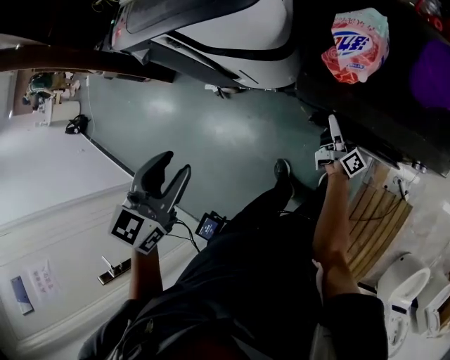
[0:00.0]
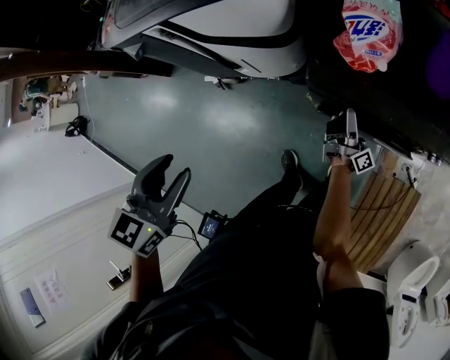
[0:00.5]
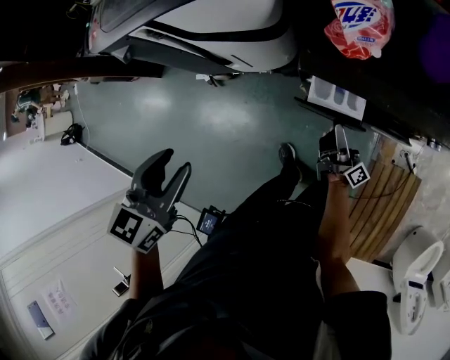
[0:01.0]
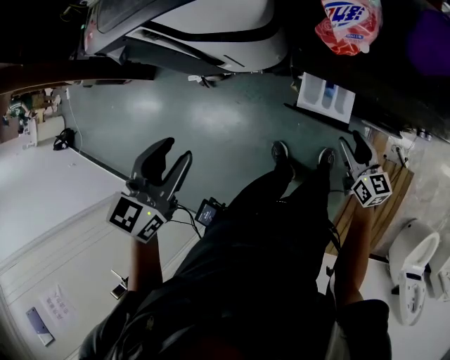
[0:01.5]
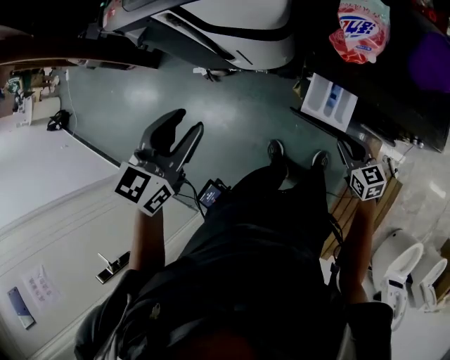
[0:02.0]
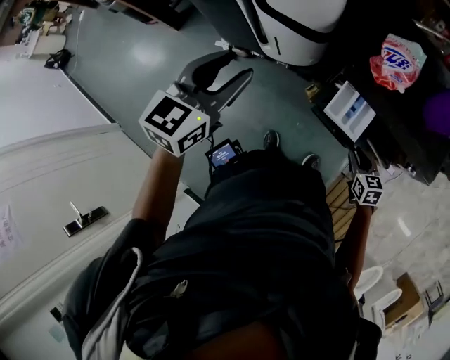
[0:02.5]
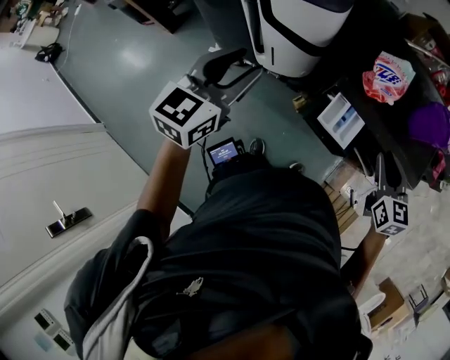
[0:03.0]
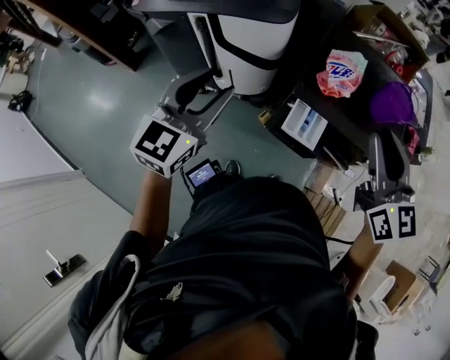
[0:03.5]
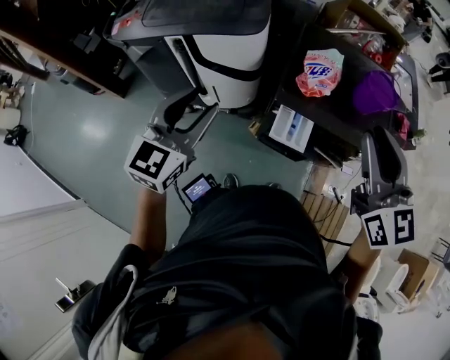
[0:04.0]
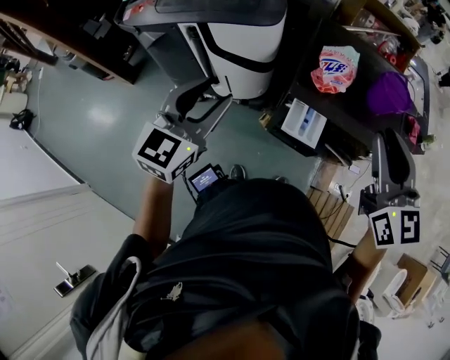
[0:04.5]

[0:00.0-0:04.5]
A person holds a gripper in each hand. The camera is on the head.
0:00.0 to 0:02.0: The right gripper is displaced backward by roughly 15 cm, angles its fingers downward, by about 40 degrees, and closes its fingers.
0:02.0 to 0:04.5: The right gripper goes about 50 cm upward, and swivels about 40 degrees. The left gripper shifts roughly 10 cm upward, and swivels roughly 20 degrees.

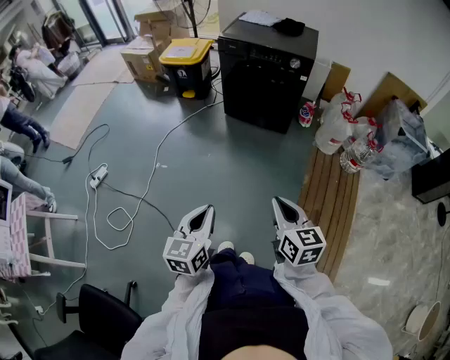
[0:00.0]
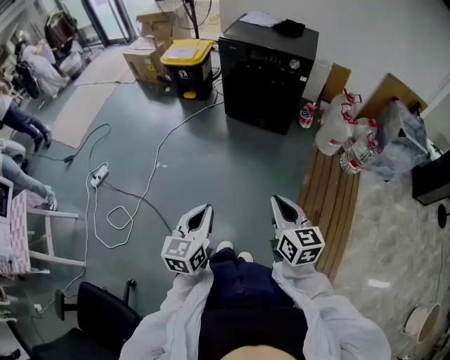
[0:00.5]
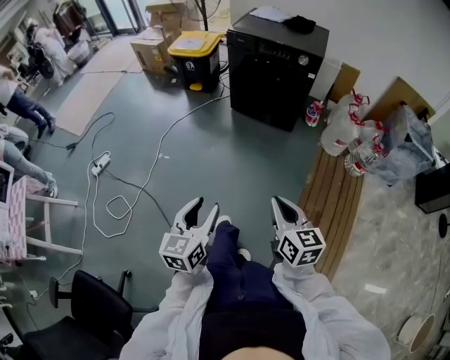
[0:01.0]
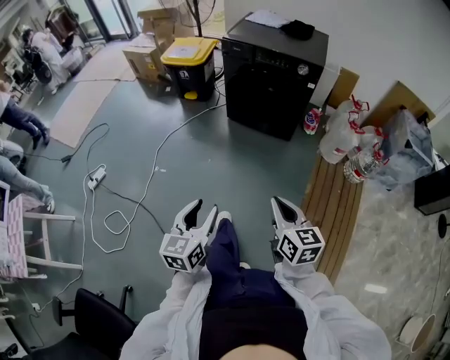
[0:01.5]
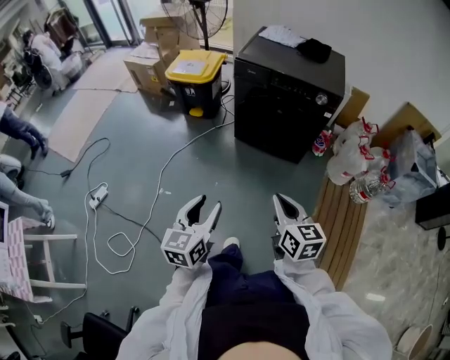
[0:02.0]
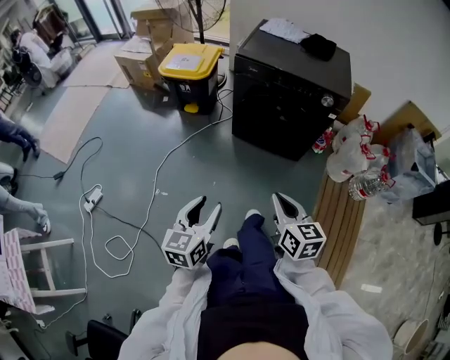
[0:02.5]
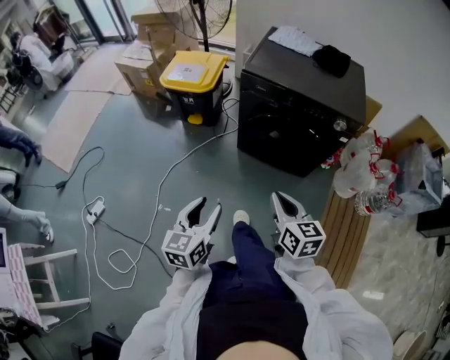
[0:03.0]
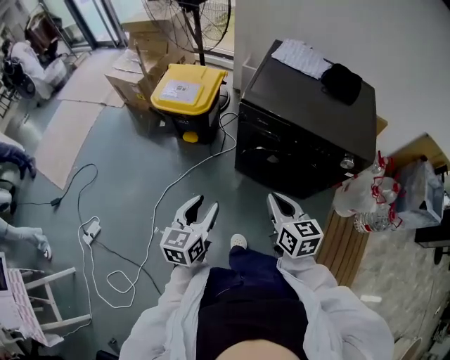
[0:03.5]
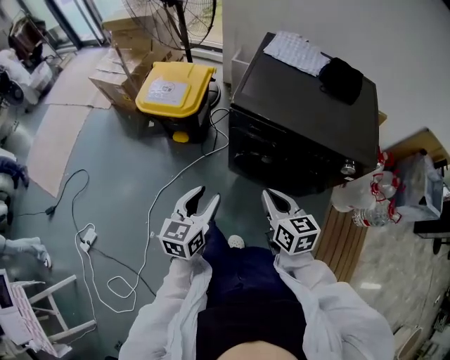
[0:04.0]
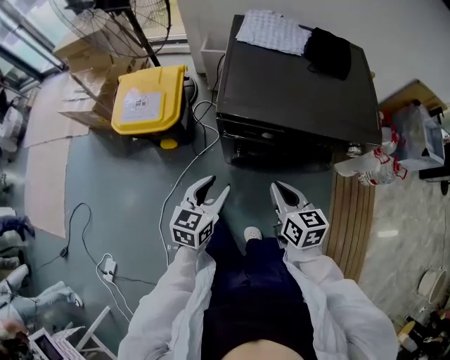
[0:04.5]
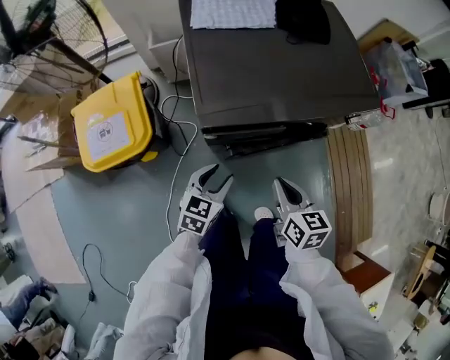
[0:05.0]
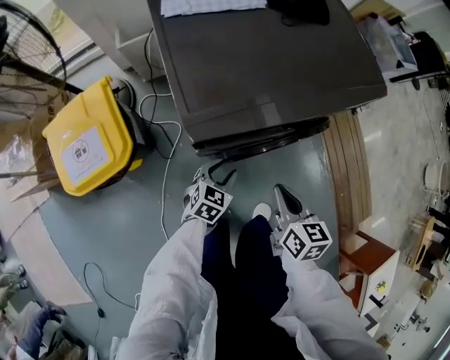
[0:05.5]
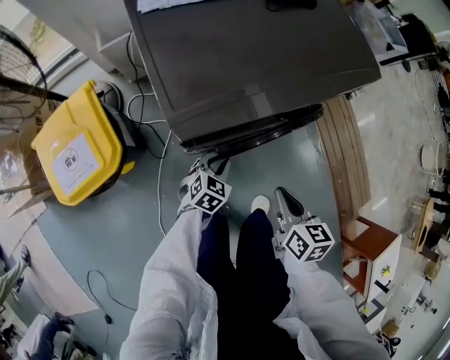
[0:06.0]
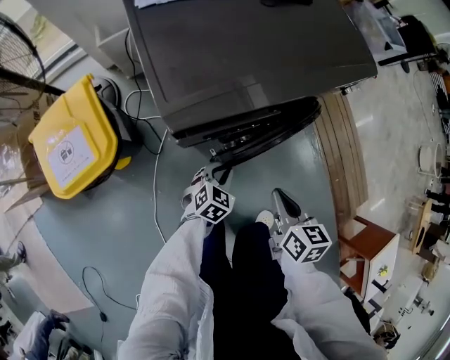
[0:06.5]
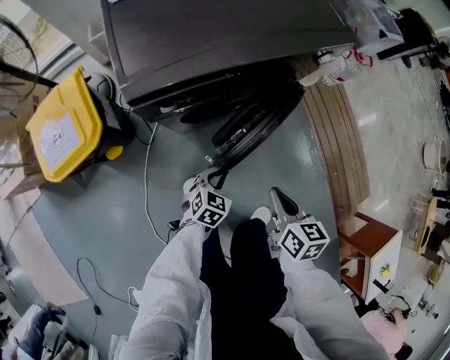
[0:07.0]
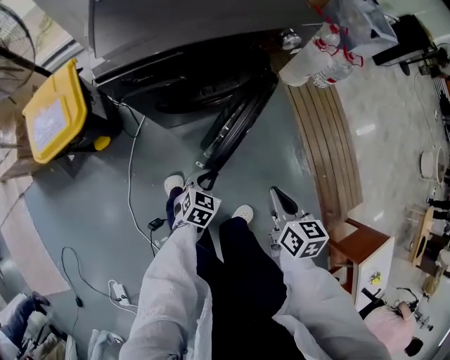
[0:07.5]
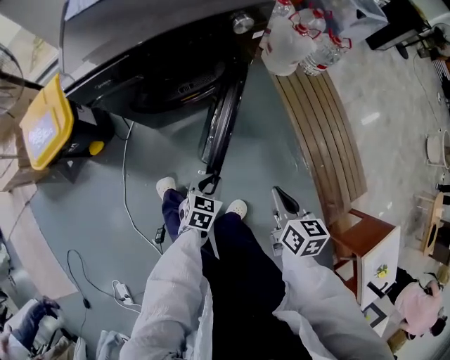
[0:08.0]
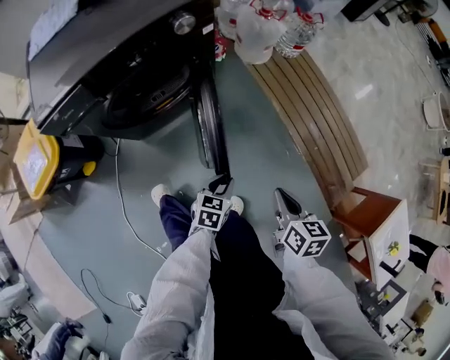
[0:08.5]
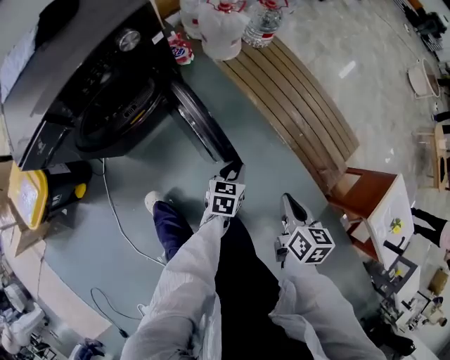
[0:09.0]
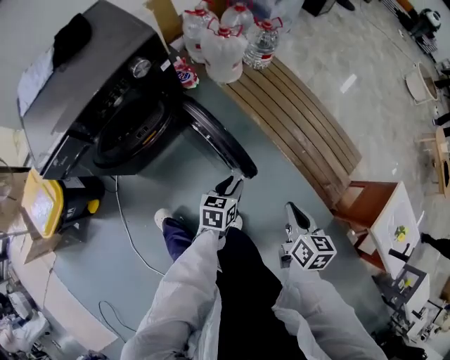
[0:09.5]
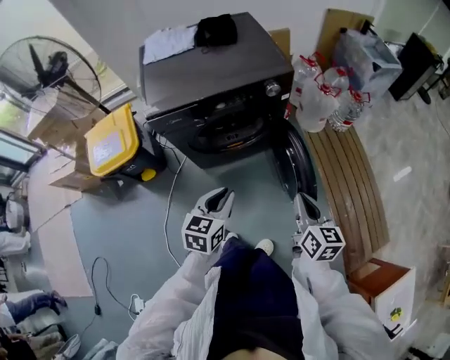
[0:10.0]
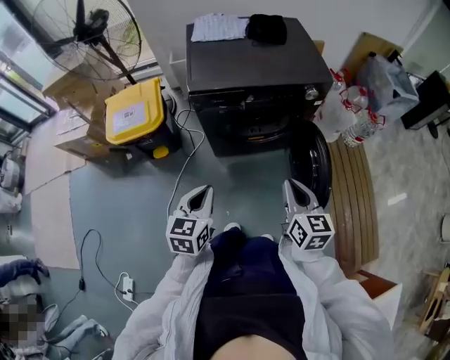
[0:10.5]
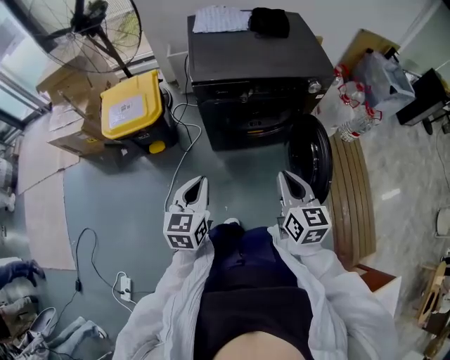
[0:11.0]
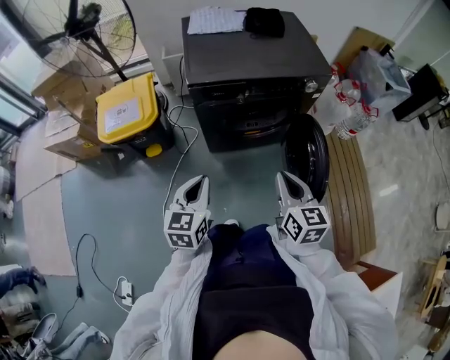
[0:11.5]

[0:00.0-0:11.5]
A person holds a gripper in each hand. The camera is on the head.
0:00.0 to 0:02.0: The grippers both shift forward by approximately 25 cm. The left gripper opens up.
0:02.0 to 0:04.0: Both grippers are carried forward, about 50 cm.
0:04.0 to 0:06.0: The right gripper moves downward, about 15 cm, and swivels some 60 degrees; the left gripper travels downward by some 30 cm, changes its angle by some 70 degrees, and closes its fingers.
0:06.0 to 0:07.5: Both grippers move to the right and backward, roughly 25 cm.
0:07.5 to 0:09.5: The left gripper ends up some 35 cm from where it was, and changes its angle by approximately 20 degrees, while the right gripper changes place by about 30 cm, and swivels approximately 30 degrees.
0:09.5 to 0:11.5: The two grippers travel together, approximately 40 cm. The left gripper changes its angle by some 50 degrees, and closes its fingers, while the right gripper turns by roughly 50 degrees.

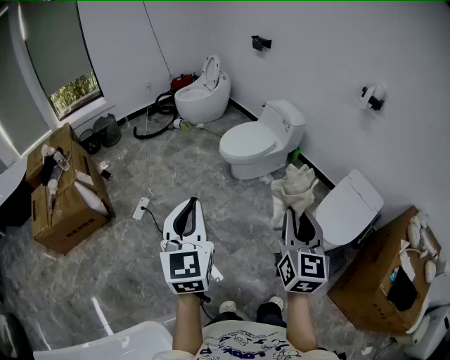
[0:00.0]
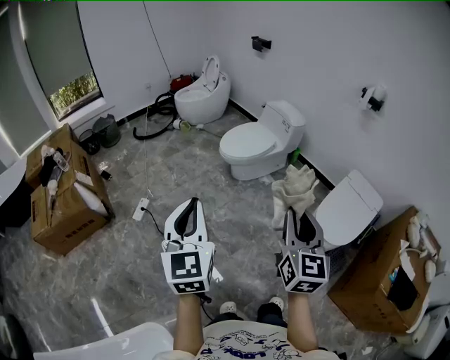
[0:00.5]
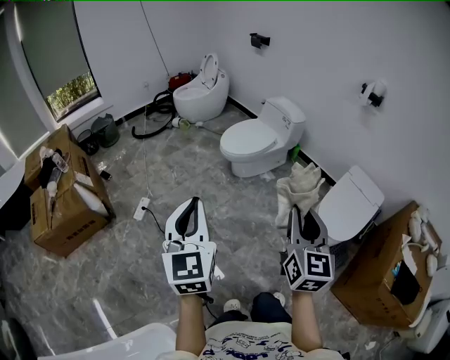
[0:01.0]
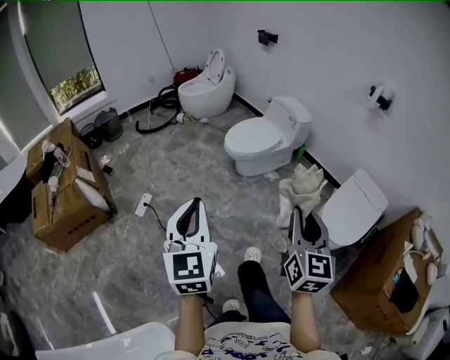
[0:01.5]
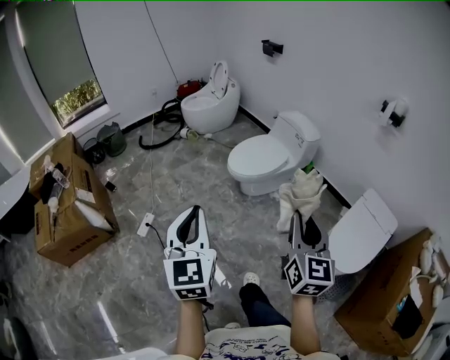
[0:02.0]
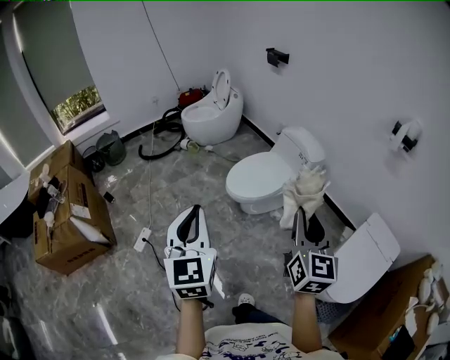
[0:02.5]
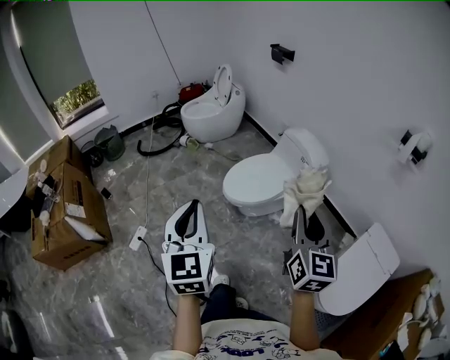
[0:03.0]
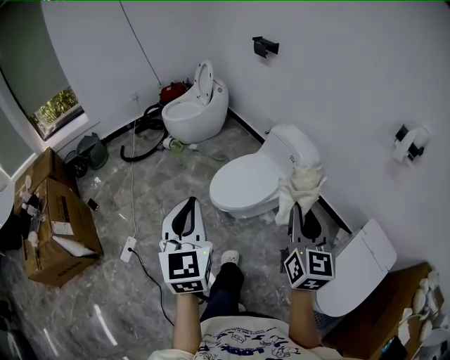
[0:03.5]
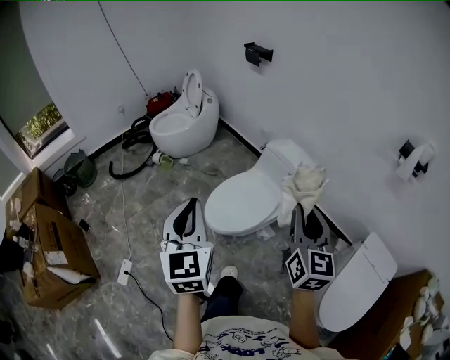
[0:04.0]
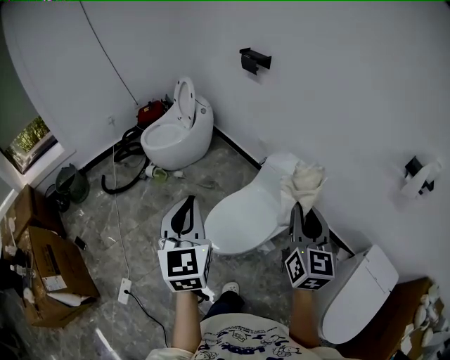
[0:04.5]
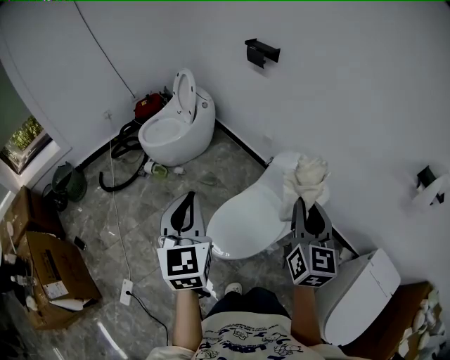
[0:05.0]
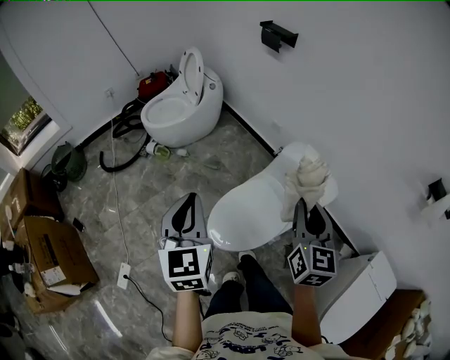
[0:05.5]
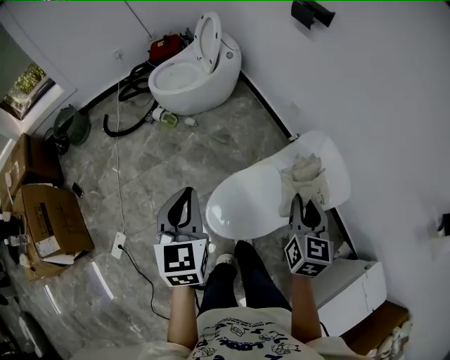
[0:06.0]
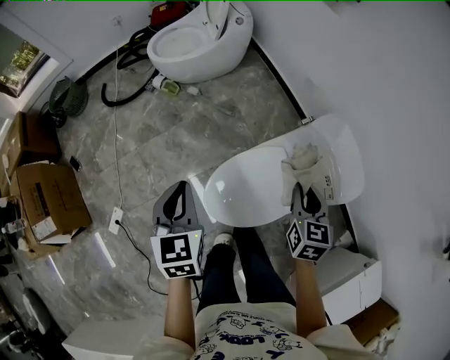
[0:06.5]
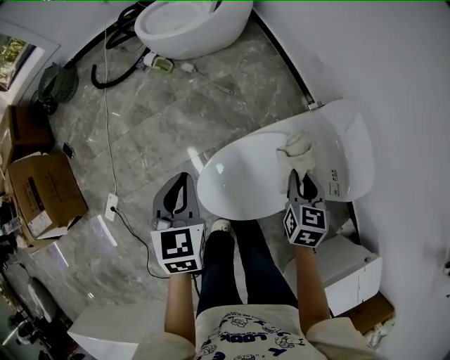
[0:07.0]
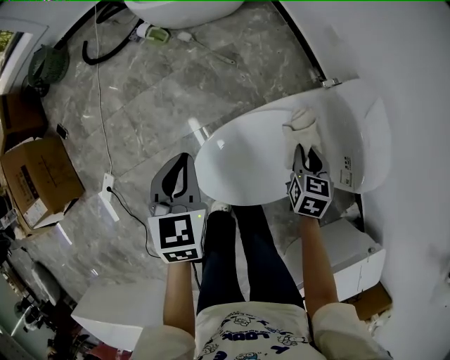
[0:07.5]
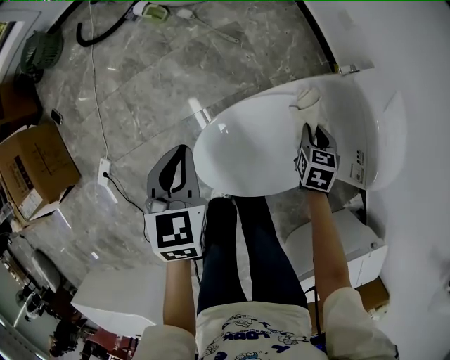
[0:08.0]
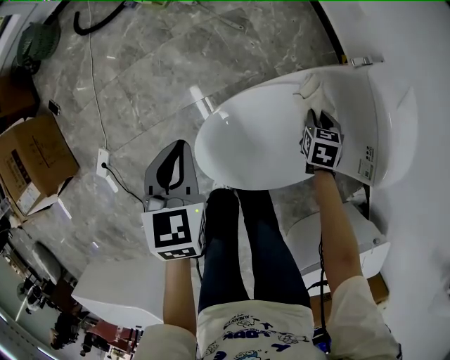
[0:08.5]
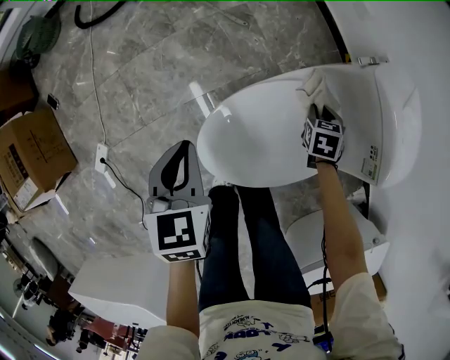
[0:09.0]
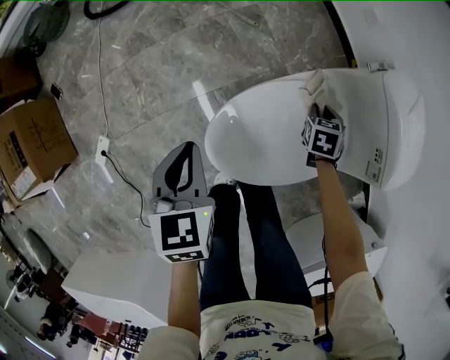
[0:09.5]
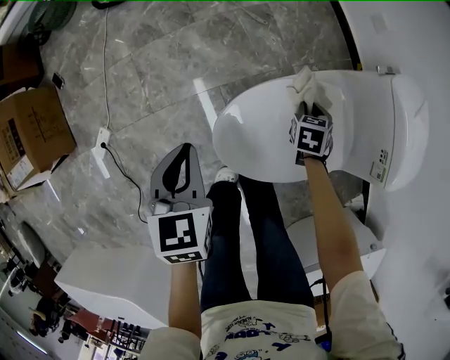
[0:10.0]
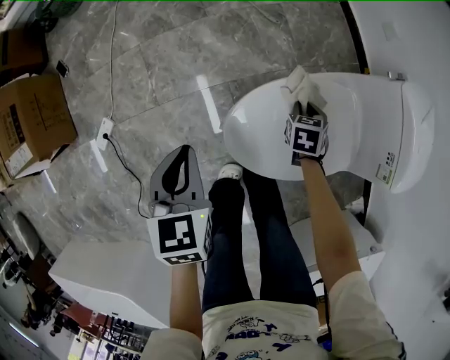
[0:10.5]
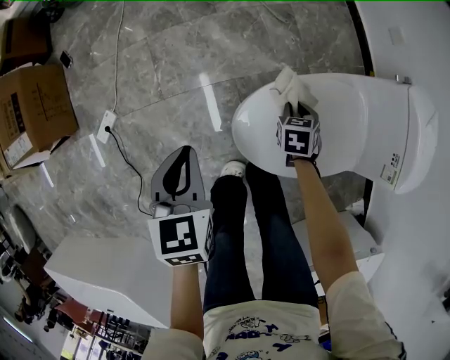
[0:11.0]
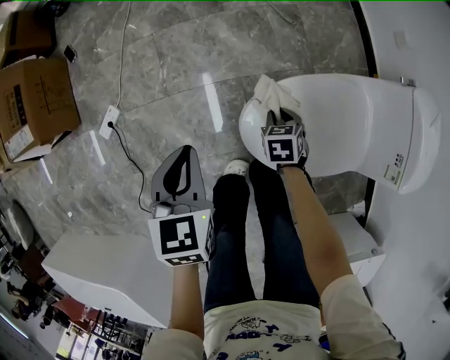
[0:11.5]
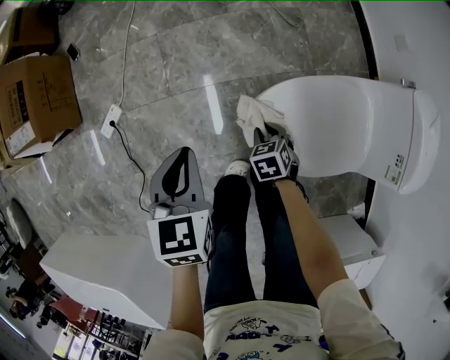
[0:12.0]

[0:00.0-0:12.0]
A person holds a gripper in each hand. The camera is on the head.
0:00.0 to 0:02.0: Both grippers move forward, about 20 cm.
0:02.0 to 0:04.0: The pair of grippers is taken forward, some 50 cm.
0:04.0 to 0:06.0: Both grippers travel together forward and downward, approximately 40 cm. The right gripper changes its angle by some 20 degrees.
0:06.0 to 0:08.0: The two grippers go about 40 cm downward. The right gripper tips its fingers downward by approximately 30 degrees. The left gripper changes its angle by about 20 degrees.
0:08.0 to 0:10.0: The left gripper shifts approximately 10 cm backward and to the left, while the right gripper heads to the left and downward, covering approximately 15 cm.
0:10.0 to 0:12.0: The right gripper ends up some 30 cm from where it was, and changes its angle by some 30 degrees, while the left gripper changes place by approximately 15 cm.
